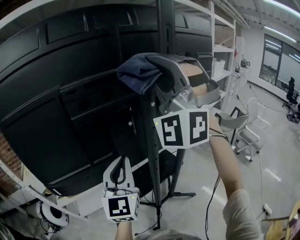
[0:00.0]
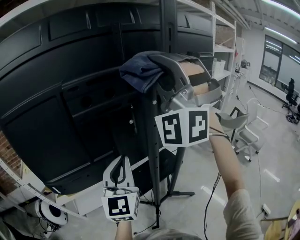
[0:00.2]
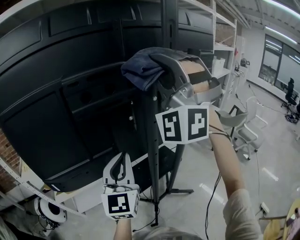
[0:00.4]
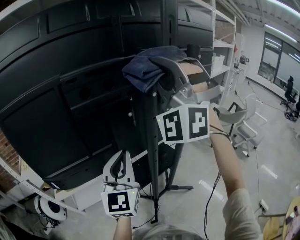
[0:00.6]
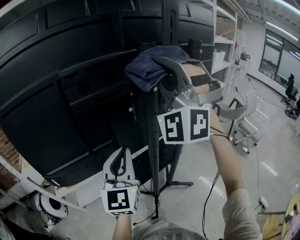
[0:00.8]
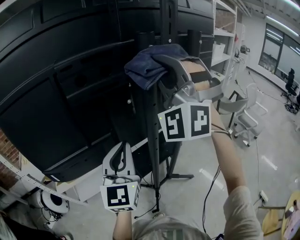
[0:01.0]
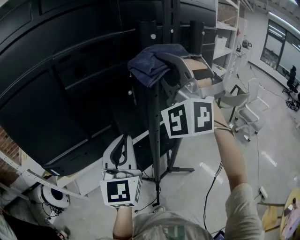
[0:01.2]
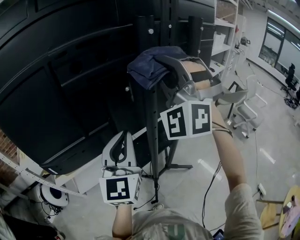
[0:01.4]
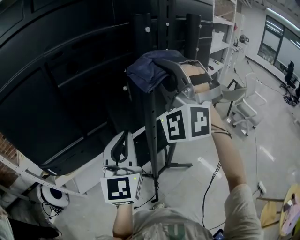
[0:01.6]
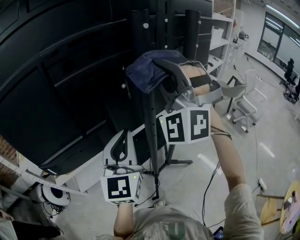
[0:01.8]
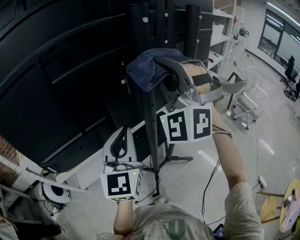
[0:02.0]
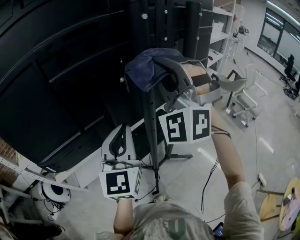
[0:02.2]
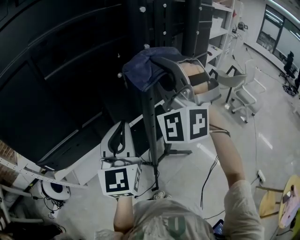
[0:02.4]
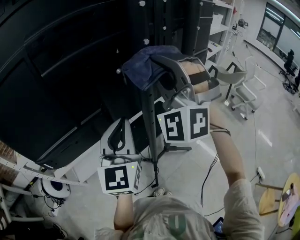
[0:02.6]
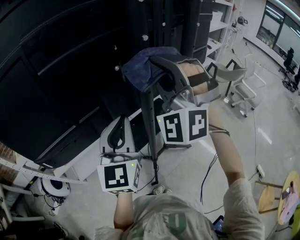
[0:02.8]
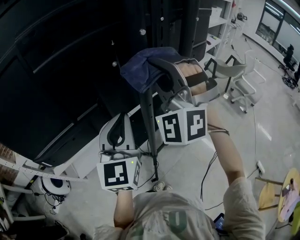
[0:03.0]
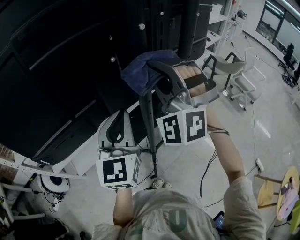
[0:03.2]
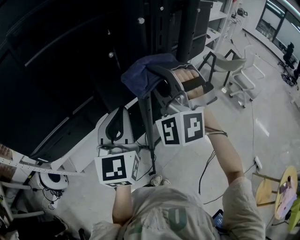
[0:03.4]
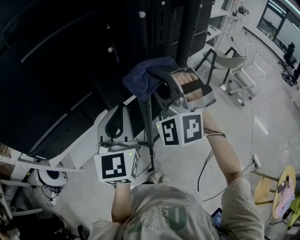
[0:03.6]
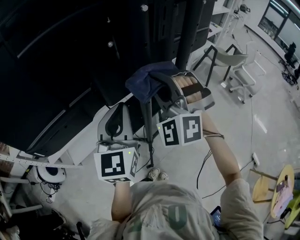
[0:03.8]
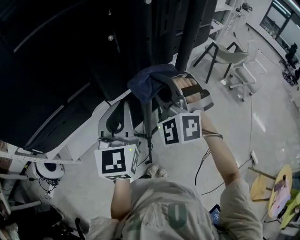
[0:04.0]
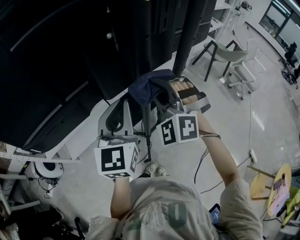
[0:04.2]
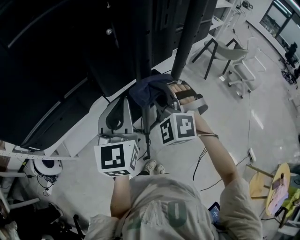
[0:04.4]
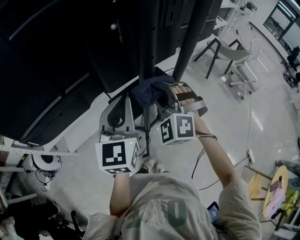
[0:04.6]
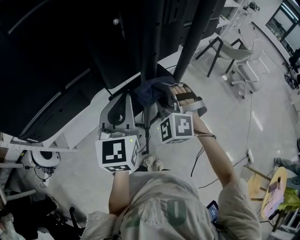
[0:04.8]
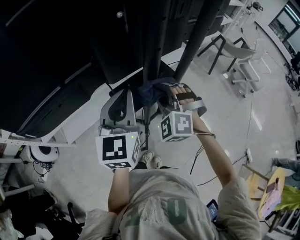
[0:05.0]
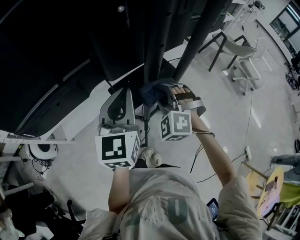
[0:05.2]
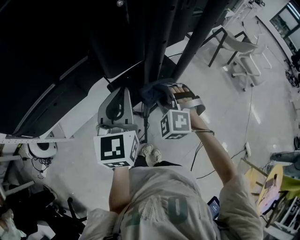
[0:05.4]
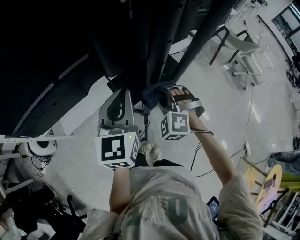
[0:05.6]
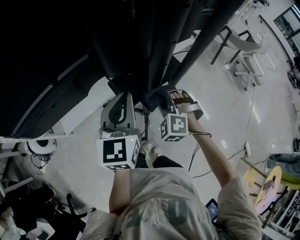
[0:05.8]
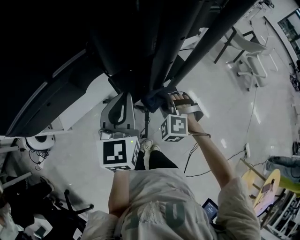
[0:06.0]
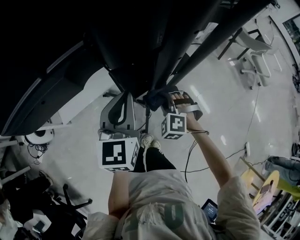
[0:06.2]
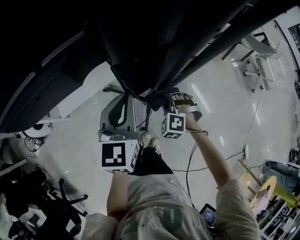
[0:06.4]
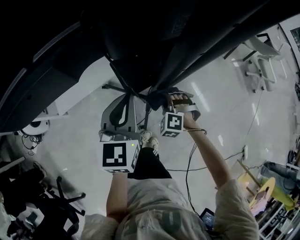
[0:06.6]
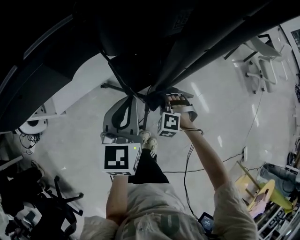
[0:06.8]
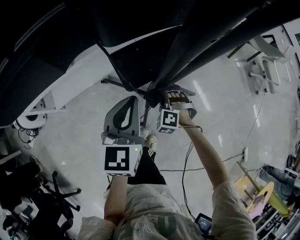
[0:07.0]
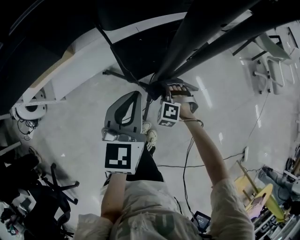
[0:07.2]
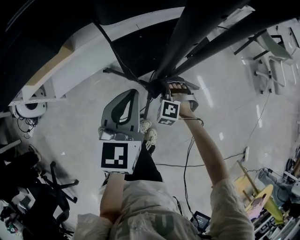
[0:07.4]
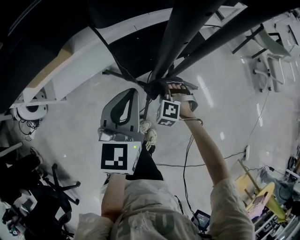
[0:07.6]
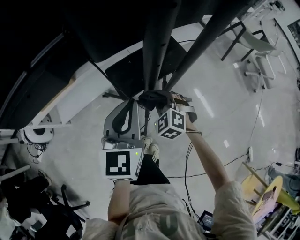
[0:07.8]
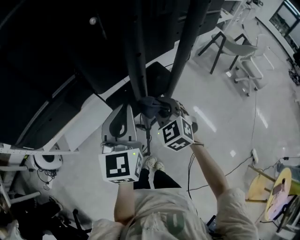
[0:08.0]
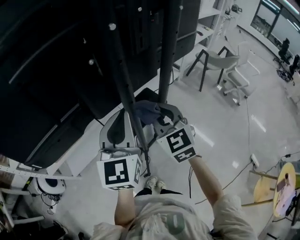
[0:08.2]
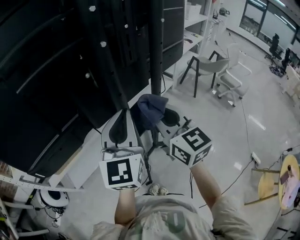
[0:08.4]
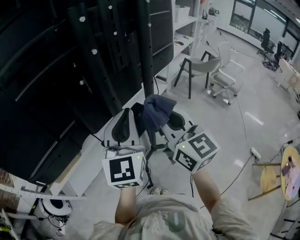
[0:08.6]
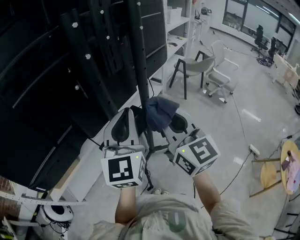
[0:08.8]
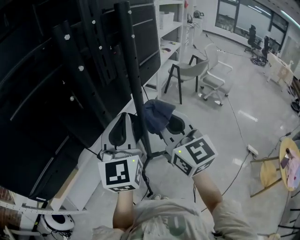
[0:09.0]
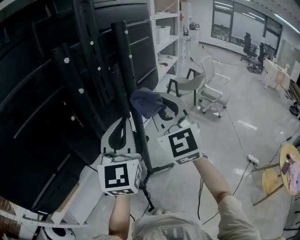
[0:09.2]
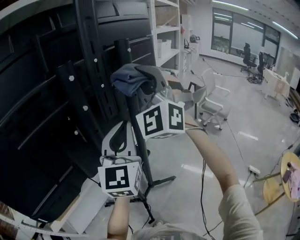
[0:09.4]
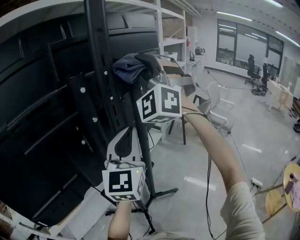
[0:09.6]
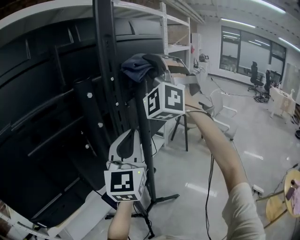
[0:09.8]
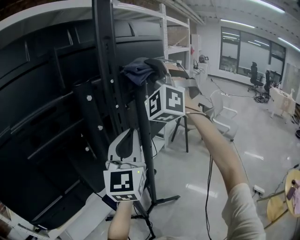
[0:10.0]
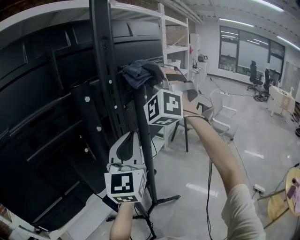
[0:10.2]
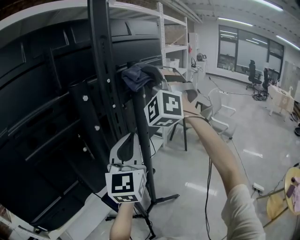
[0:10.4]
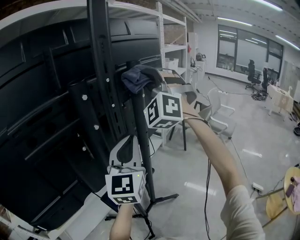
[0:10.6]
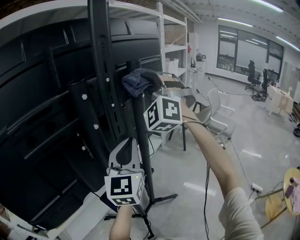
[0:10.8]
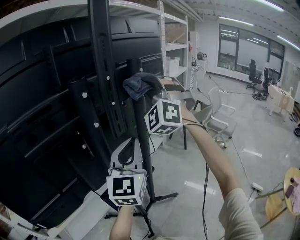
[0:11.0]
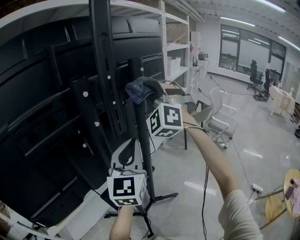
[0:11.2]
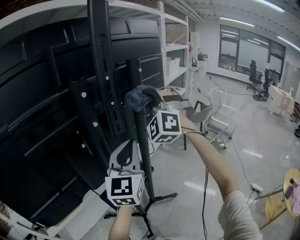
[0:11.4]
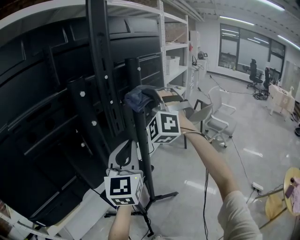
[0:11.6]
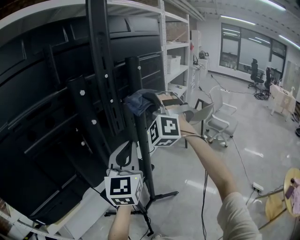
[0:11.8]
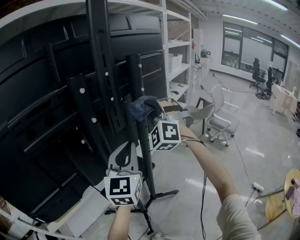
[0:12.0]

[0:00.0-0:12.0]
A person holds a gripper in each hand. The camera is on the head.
0:00.0 to 0:01.6: The right gripper travels downward by some 15 cm.
0:01.6 to 0:03.0: The right gripper is displaced downward by some 10 cm.
0:03.0 to 0:04.4: The right gripper shifts approximately 20 cm downward, and rotates roughly 30 degrees; the left gripper is displaced downward by about 5 cm.
0:04.4 to 0:06.0: The right gripper moves downward, some 25 cm, and turns by some 20 degrees; the left gripper moves downward, about 10 cm.
0:06.0 to 0:07.6: The left gripper moves downward, approximately 10 cm; the right gripper travels downward by roughly 20 cm.
0:07.6 to 0:09.0: The left gripper goes about 35 cm upward and to the right, and turns by some 40 degrees. The right gripper is displaced upward by approximately 60 cm, and tips its fingers upward by roughly 60 degrees.
0:09.0 to 0:10.4: The left gripper goes some 10 cm forward and upward; the right gripper shifts some 30 cm upward and forward, and twists about 80 degrees counterclockwise, seen from behind.
0:10.4 to 0:12.0: The right gripper goes some 15 cm downward. Meanwhile the left gripper shifts approximately 5 cm downward.

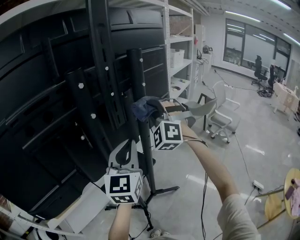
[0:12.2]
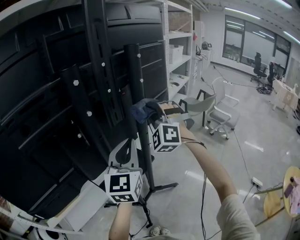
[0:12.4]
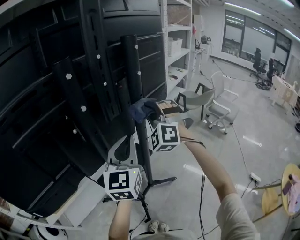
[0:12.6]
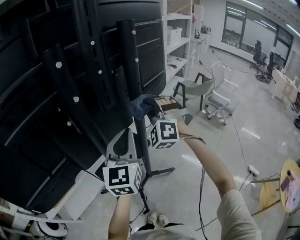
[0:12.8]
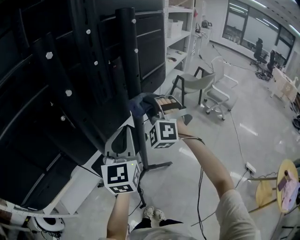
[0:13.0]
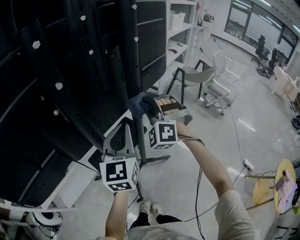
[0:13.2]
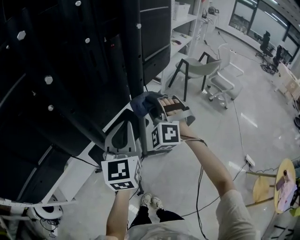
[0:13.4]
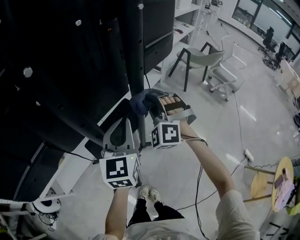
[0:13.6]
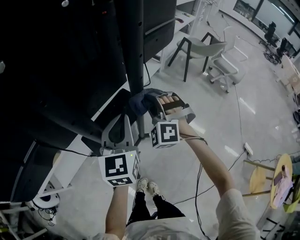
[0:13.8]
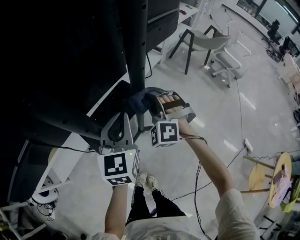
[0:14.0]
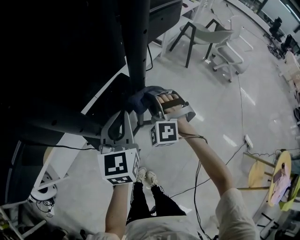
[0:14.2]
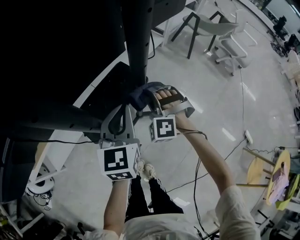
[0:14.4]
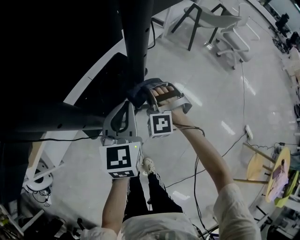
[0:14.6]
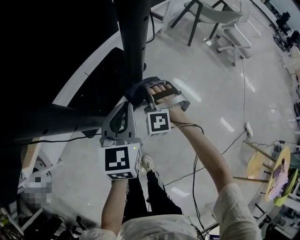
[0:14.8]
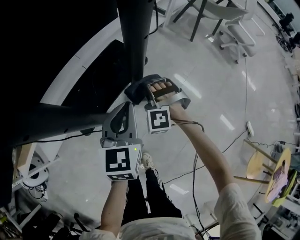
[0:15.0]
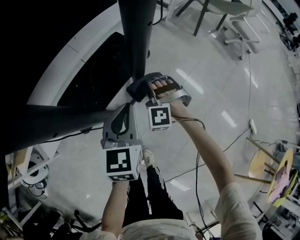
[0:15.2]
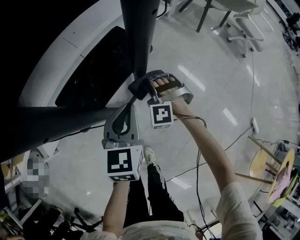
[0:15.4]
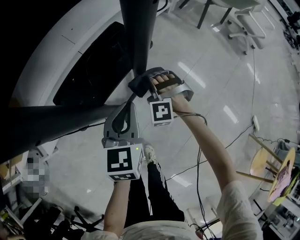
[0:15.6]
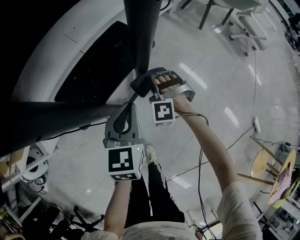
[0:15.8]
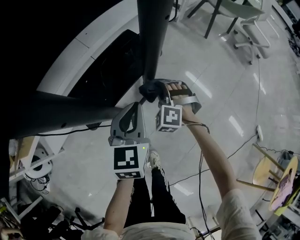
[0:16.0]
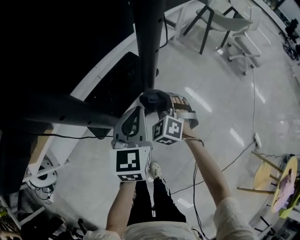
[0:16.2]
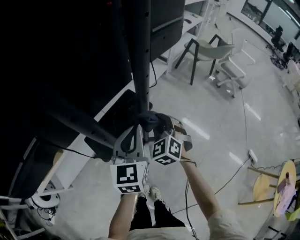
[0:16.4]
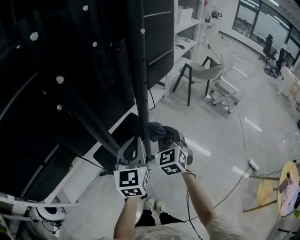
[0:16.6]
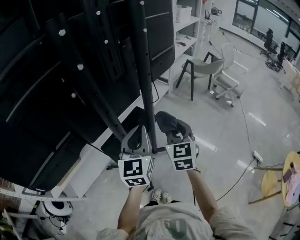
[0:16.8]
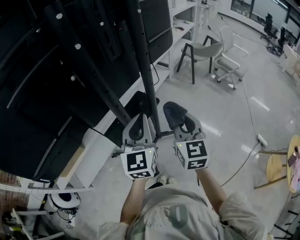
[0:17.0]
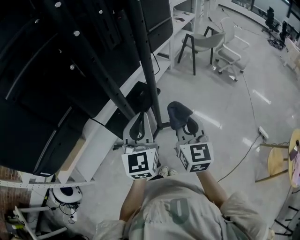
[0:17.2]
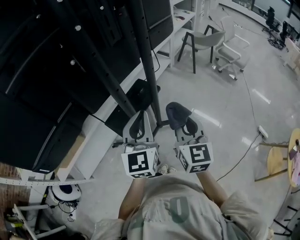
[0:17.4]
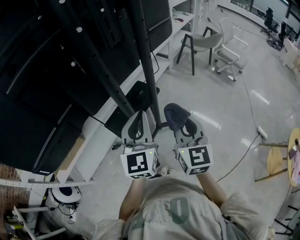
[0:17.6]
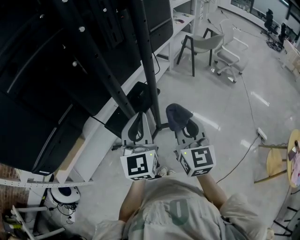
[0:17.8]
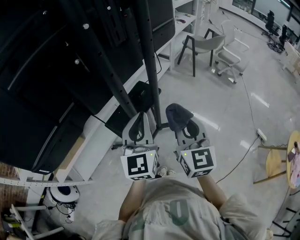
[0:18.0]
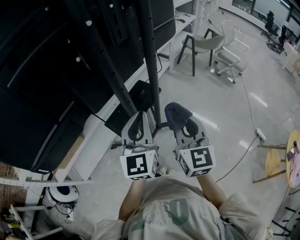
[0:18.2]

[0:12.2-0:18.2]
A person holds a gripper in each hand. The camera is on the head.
0:12.2 to 0:13.8: The two grippers go about 25 cm downward. The right gripper rotates about 20 degrees.
0:13.8 to 0:15.2: Both grippers move downward, about 25 cm. The right gripper swivels approximately 20 degrees.
0:15.2 to 0:16.6: The two grippers go approximately 30 cm upward. The right gripper rolls clockwise, seen from behind, by some 60 degrees.
0:16.6 to 0:18.2: The left gripper shifts about 10 cm backward. The right gripper heads backward and upward, covering approximately 20 cm, and swivels approximately 30 degrees.

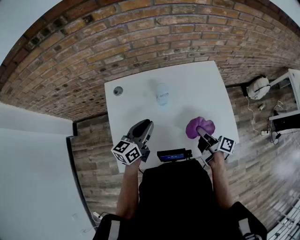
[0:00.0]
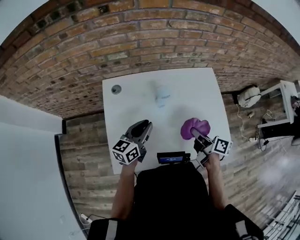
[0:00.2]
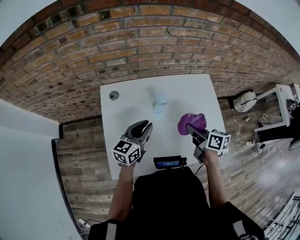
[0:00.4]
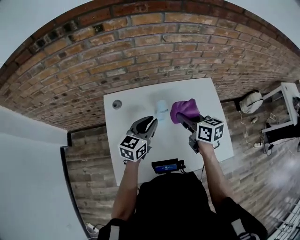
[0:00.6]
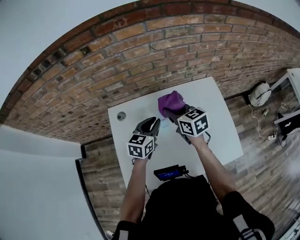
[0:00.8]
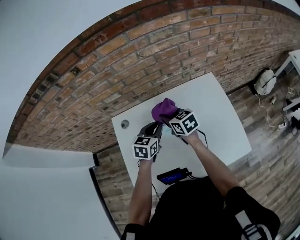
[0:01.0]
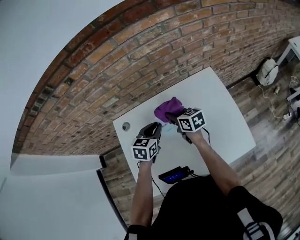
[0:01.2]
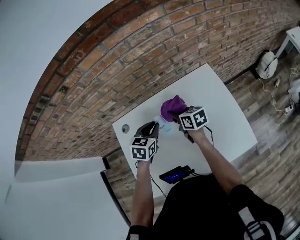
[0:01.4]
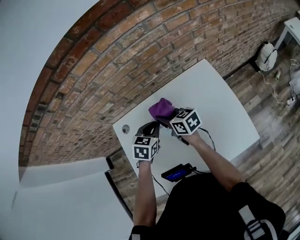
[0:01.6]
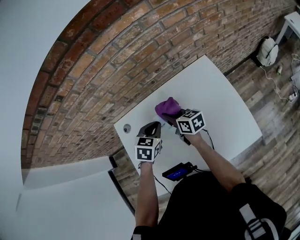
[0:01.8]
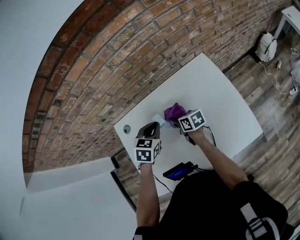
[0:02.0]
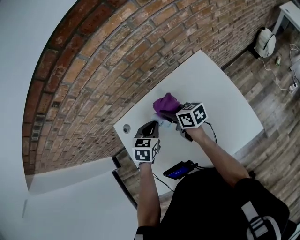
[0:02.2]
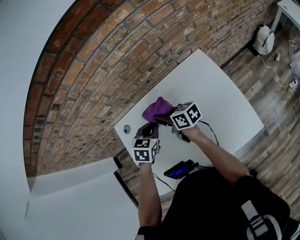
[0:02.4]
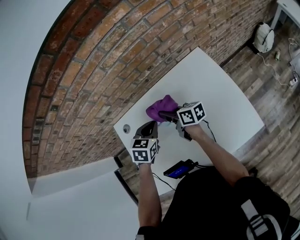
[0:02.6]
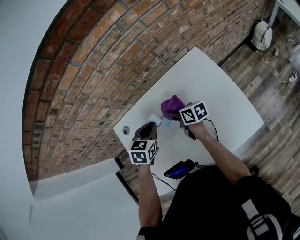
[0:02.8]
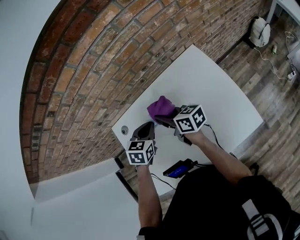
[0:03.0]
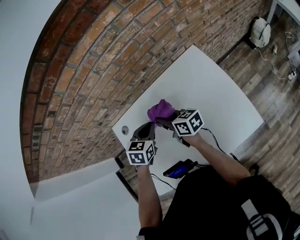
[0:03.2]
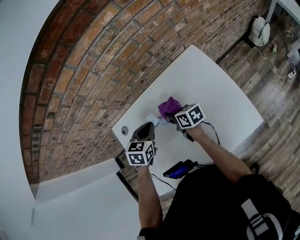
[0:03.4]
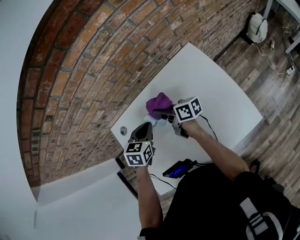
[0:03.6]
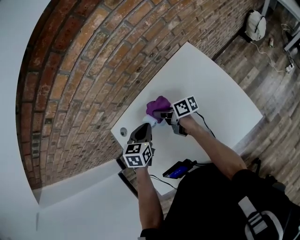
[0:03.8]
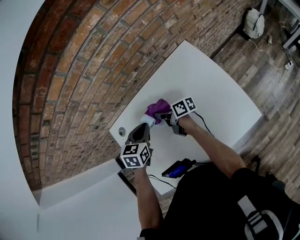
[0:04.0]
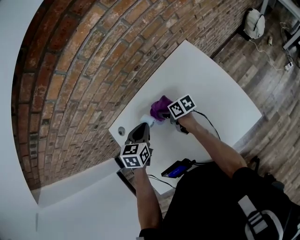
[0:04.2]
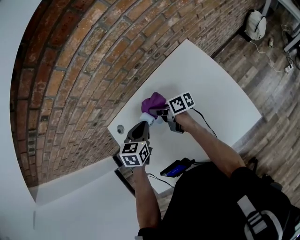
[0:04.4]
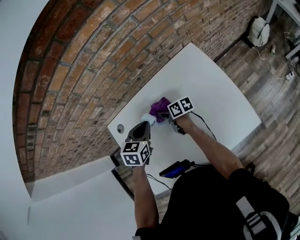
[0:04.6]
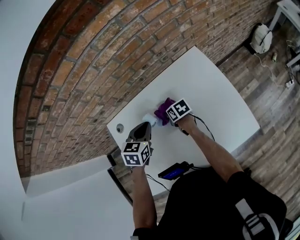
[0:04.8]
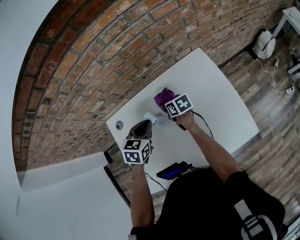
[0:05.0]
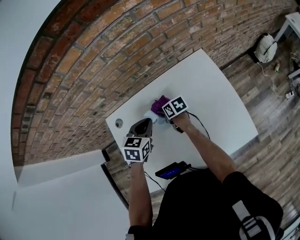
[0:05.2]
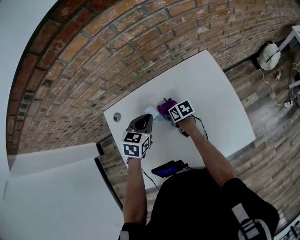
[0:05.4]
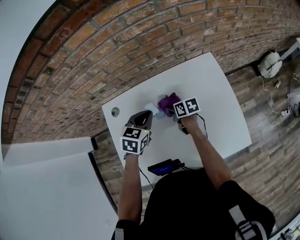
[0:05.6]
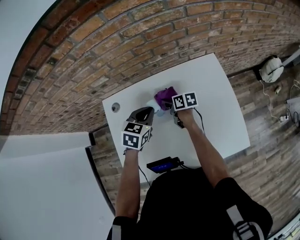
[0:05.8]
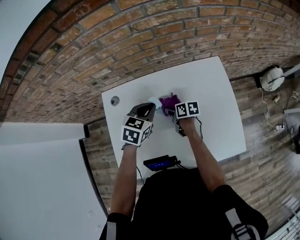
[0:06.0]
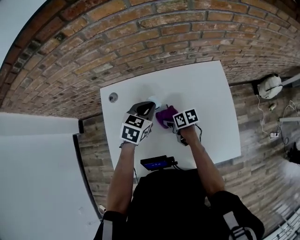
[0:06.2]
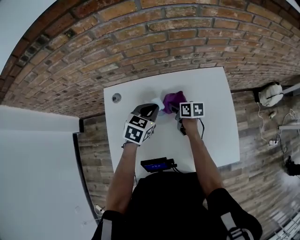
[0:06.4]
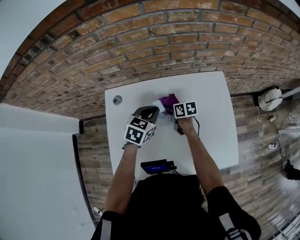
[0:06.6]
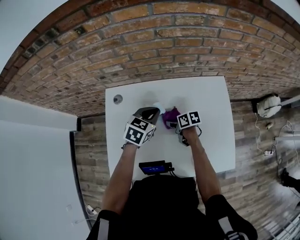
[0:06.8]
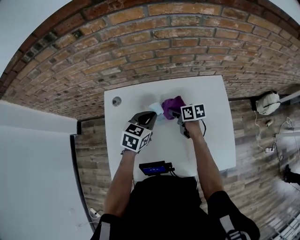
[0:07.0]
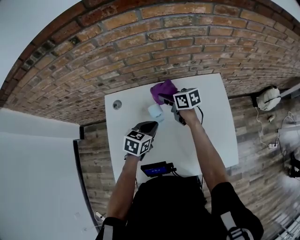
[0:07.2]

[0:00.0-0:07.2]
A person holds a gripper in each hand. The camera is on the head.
0:00.0 to 0:01.4: The right gripper heads forward and to the left, covering about 25 cm, and turns by about 30 degrees; the left gripper moves forward, about 15 cm, and points its fingers roughly 40 degrees further downward.
0:01.4 to 0:02.8: The right gripper moves up and down over some 10 cm, changing direction 3 times.
0:02.8 to 0:04.4: The right gripper swings up and down, roughly 10 cm each way, with 4 reversals, and changes its angle by roughly 30 degrees.
0:04.4 to 0:05.8: The right gripper swings up and down, approximately 10 cm each way, with 2 reversals, and rotates some 30 degrees.
0:05.8 to 0:07.2: The right gripper moves forward and backward over some 15 cm, changing direction 3 times, and turns by about 20 degrees. The left gripper ends up roughly 5 cm from where it was.
